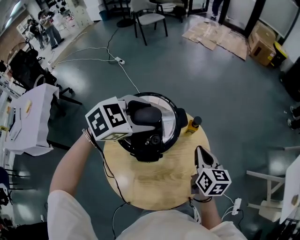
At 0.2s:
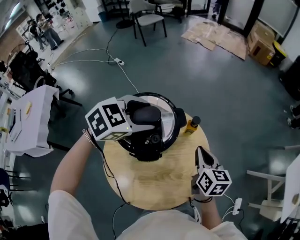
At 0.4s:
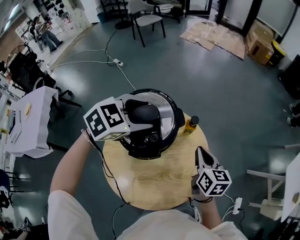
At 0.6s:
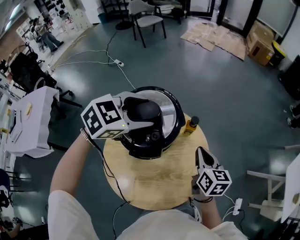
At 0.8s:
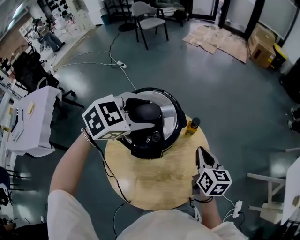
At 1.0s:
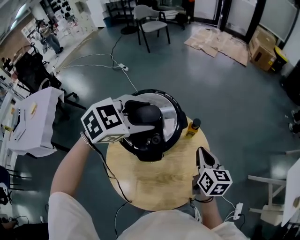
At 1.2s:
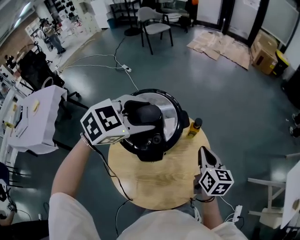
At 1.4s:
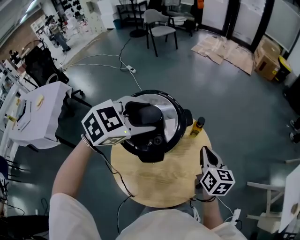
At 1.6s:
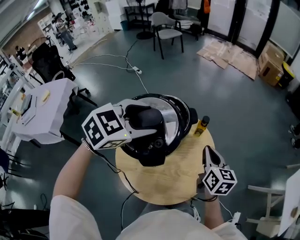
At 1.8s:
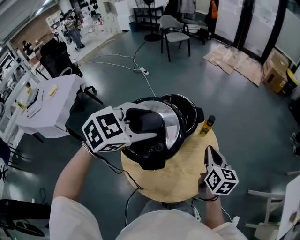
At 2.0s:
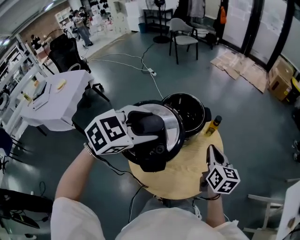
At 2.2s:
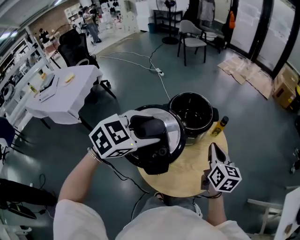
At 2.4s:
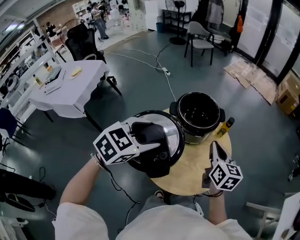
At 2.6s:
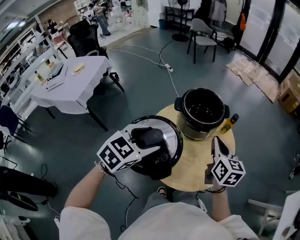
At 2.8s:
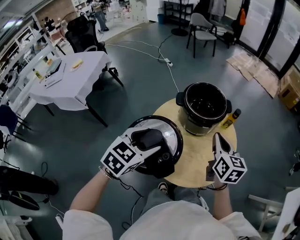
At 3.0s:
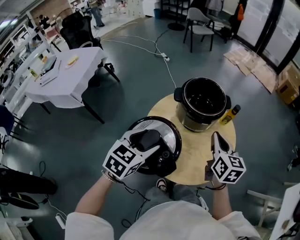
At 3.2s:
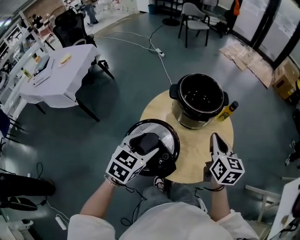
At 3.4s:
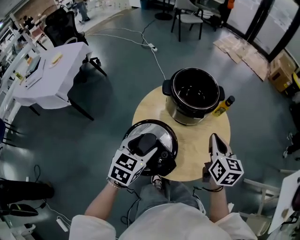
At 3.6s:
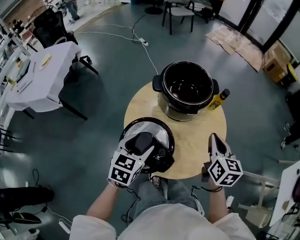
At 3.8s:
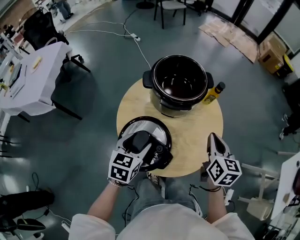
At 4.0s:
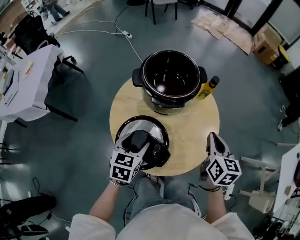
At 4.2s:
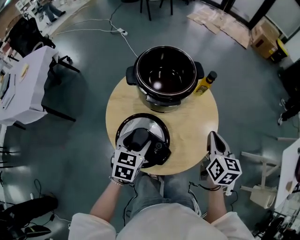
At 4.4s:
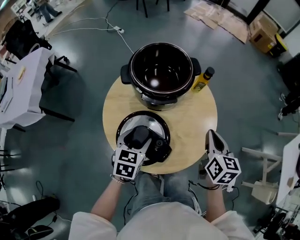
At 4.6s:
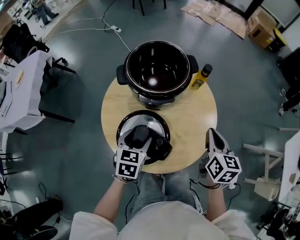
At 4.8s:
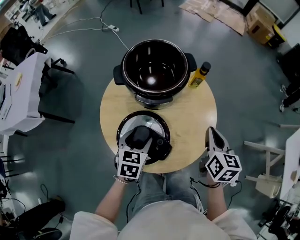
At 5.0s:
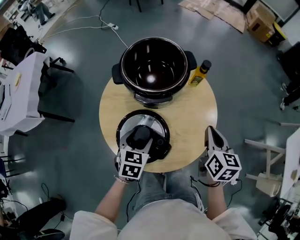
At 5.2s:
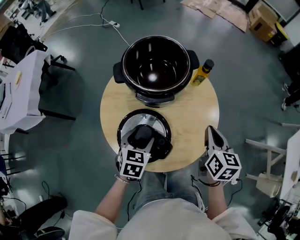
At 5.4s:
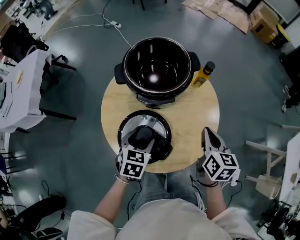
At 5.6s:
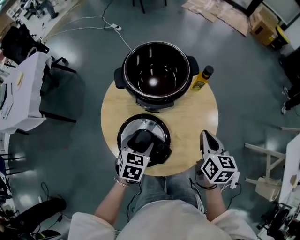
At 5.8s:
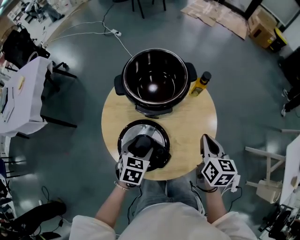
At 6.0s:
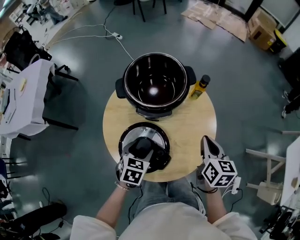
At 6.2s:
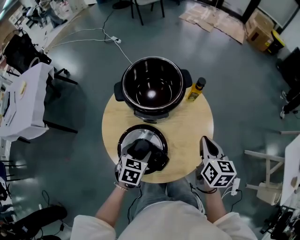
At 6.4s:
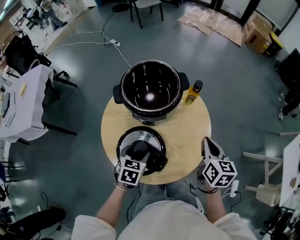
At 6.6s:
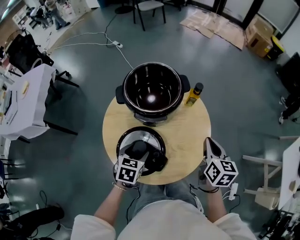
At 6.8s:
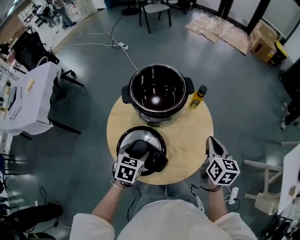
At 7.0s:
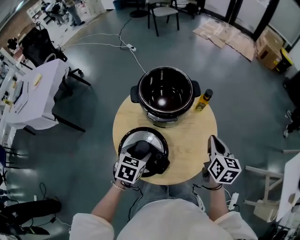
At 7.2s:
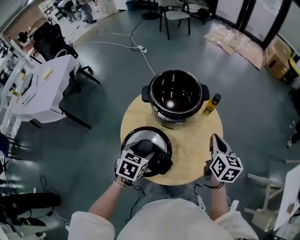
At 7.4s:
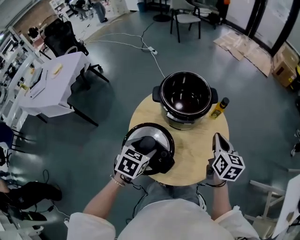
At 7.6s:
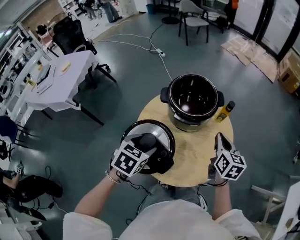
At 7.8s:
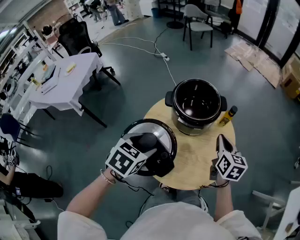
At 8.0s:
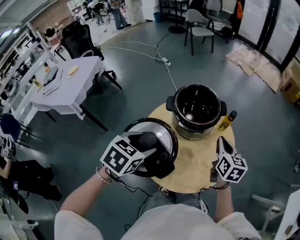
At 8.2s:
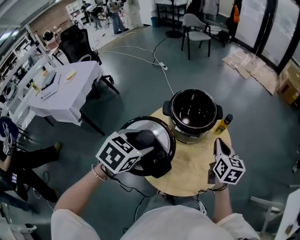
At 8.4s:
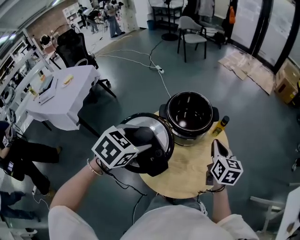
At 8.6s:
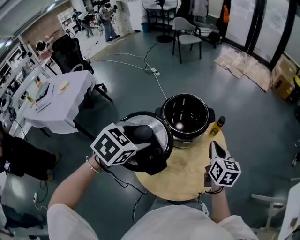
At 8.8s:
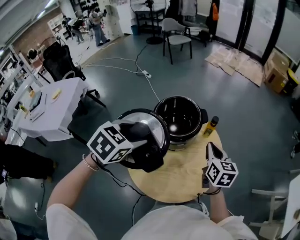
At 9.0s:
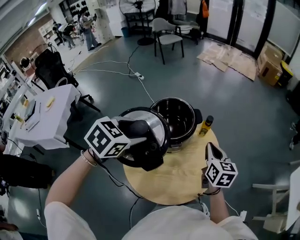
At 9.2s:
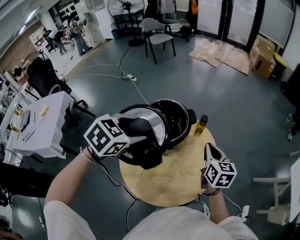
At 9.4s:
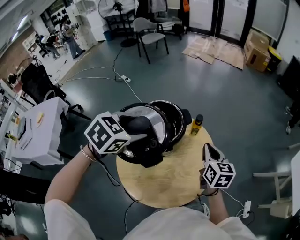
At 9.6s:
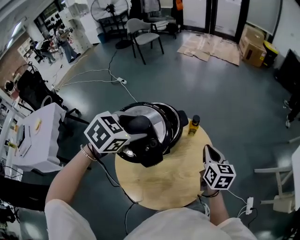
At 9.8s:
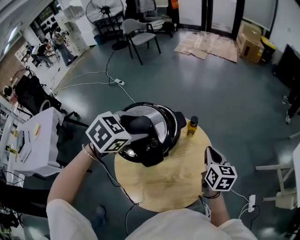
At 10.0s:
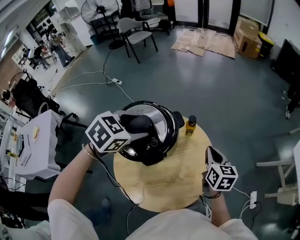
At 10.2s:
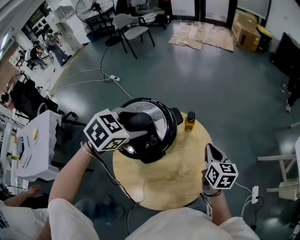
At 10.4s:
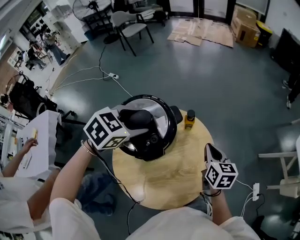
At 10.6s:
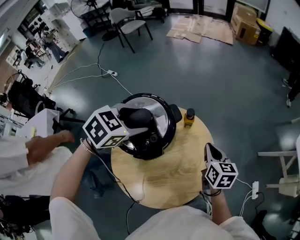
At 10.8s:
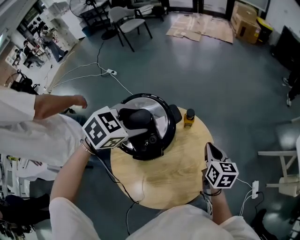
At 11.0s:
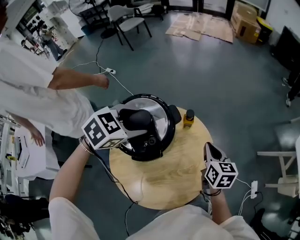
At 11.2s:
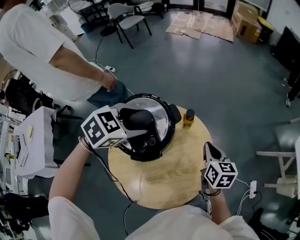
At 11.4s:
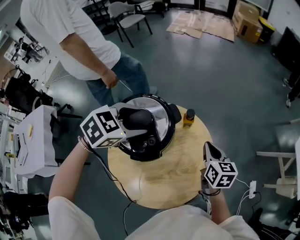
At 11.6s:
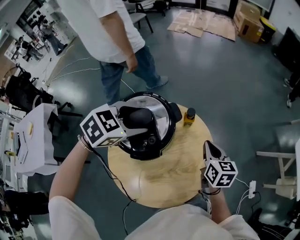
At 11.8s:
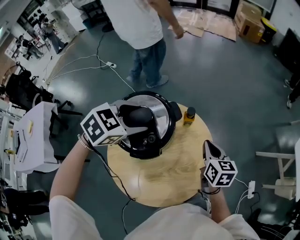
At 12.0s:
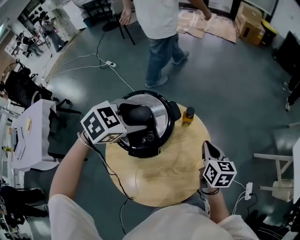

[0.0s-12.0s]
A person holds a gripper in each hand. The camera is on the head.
0.0s to 1.6s: The right gripper ends up roughly 5 cm from where it was; the left gripper is displaced backward and upward by roughly 15 cm.
1.6s to 3.0s: The left gripper is displaced backward, downward and to the left by approximately 25 cm, and rotates some 40 degrees. The right gripper travels to the left and backward by some 15 cm.
3.0s to 4.4s: The left gripper shifts about 20 cm downward, to the right and forward. Meanwhile the right gripper travels to the right and downward by about 15 cm, and turns by about 20 degrees.
4.4s to 6.0s: There are only small adjustments of the grippers.
6.0s to 7.6s: The right gripper is displaced upward and to the left by some 10 cm. Meanwhile the left gripper is displaced upward and to the left by some 15 cm.
7.6s to 9.0s: The left gripper travels forward and upward by some 20 cm, and rotates some 30 degrees.
9.0s to 10.4s: The right gripper is displaced downward and to the right by approximately 10 cm, while the left gripper heads forward, covering about 15 cm, and turns by roughly 20 degrees.
10.4s to 12.0s: There are only small adjustments of the grippers.

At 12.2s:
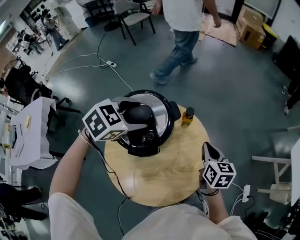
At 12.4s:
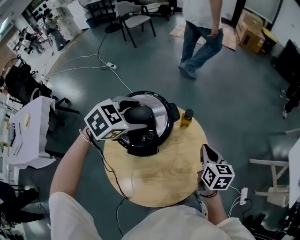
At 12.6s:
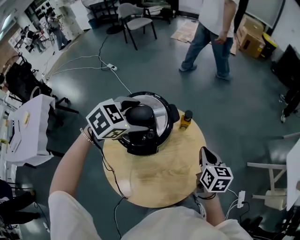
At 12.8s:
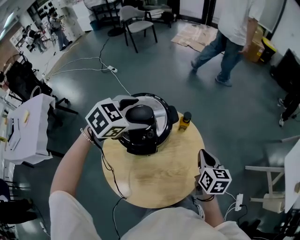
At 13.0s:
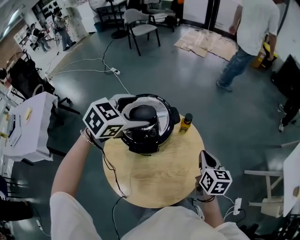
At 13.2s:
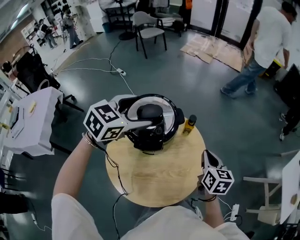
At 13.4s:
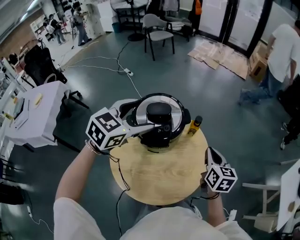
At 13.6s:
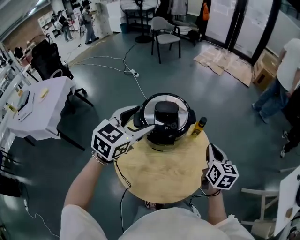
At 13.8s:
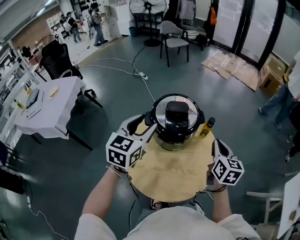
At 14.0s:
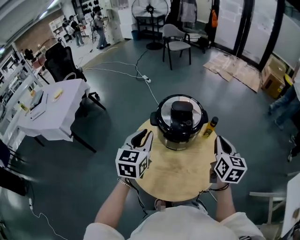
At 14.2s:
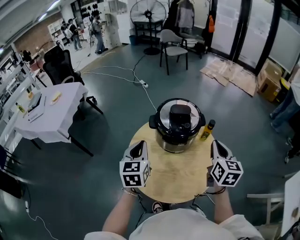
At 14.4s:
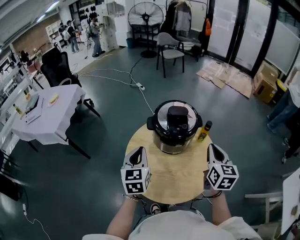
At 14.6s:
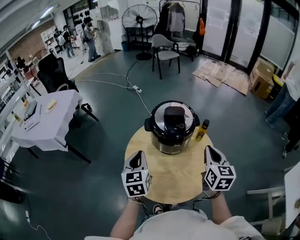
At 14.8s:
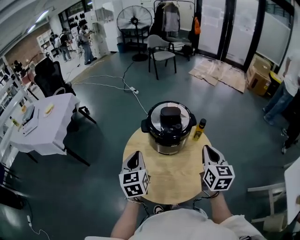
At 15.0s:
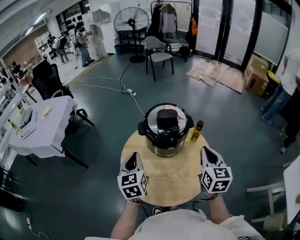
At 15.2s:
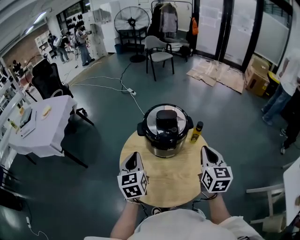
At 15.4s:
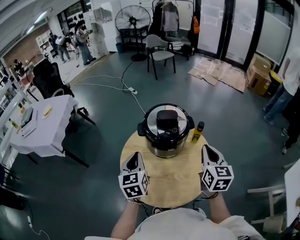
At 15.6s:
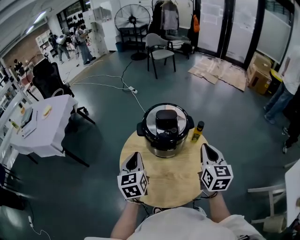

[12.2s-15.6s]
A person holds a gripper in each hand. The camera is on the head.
12.2s to 13.8s: The right gripper heads upward, covering approximately 10 cm. The left gripper ends up approximately 20 cm from where it was, and tips its fingers upward by approximately 40 degrees.
13.8s to 15.6s: The left gripper heads downward and backward, covering approximately 10 cm, changes its angle by about 30 degrees, and closes up.

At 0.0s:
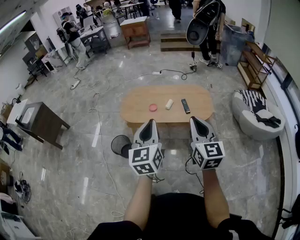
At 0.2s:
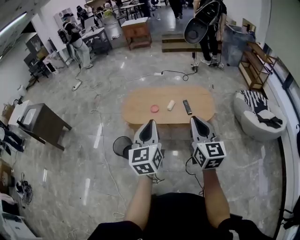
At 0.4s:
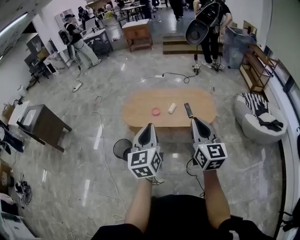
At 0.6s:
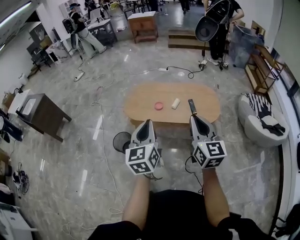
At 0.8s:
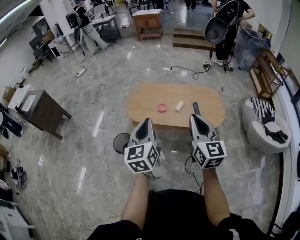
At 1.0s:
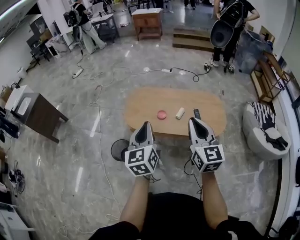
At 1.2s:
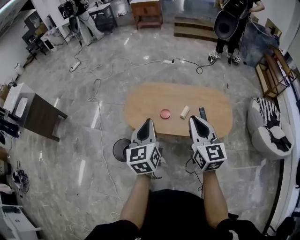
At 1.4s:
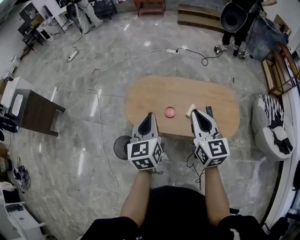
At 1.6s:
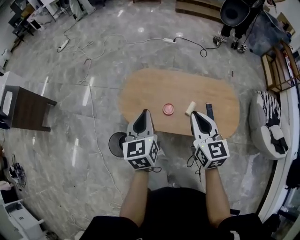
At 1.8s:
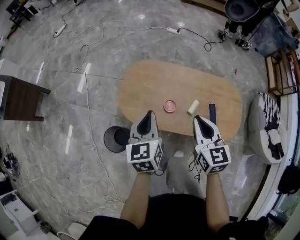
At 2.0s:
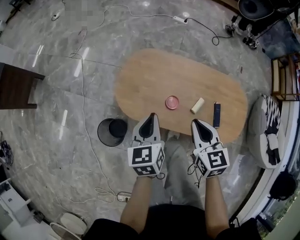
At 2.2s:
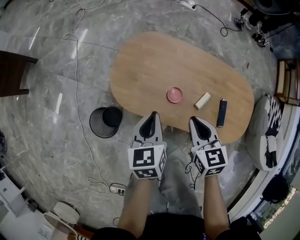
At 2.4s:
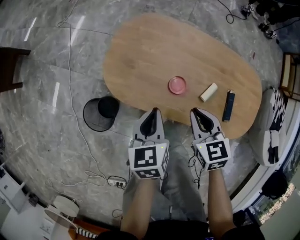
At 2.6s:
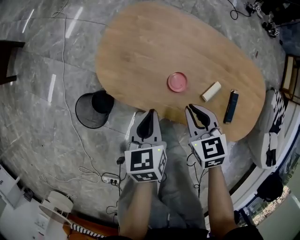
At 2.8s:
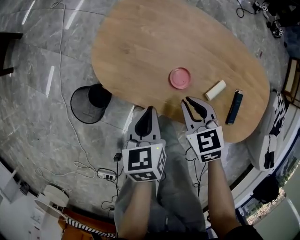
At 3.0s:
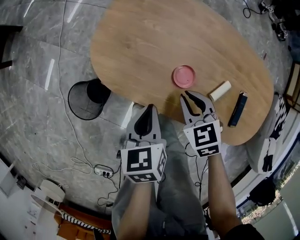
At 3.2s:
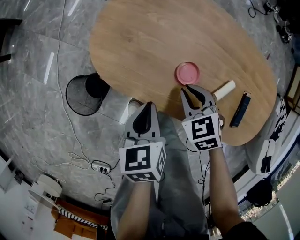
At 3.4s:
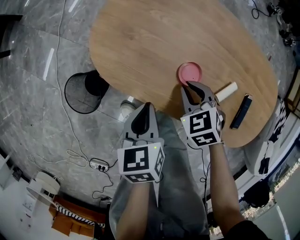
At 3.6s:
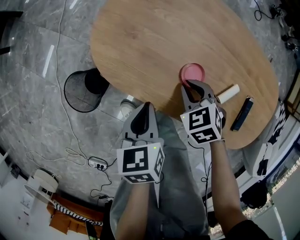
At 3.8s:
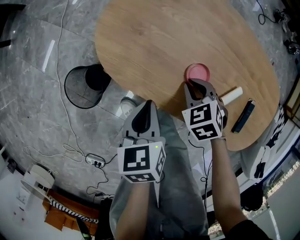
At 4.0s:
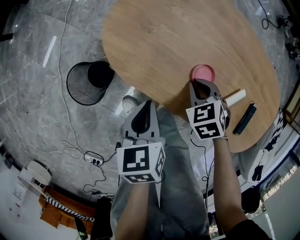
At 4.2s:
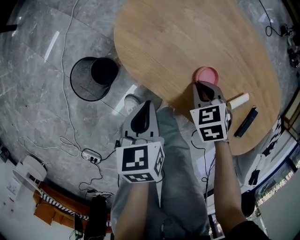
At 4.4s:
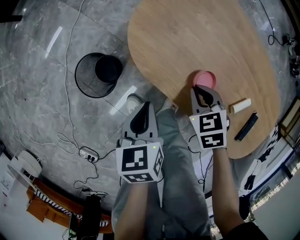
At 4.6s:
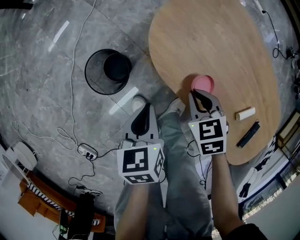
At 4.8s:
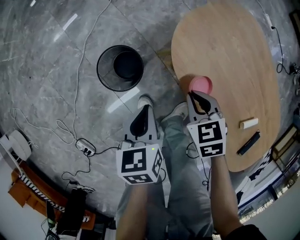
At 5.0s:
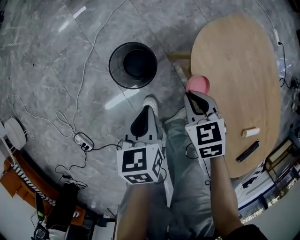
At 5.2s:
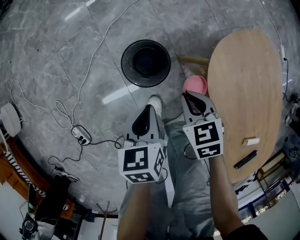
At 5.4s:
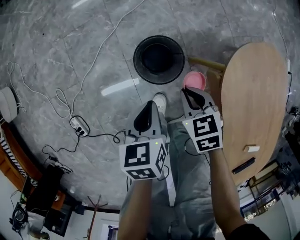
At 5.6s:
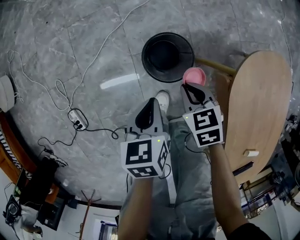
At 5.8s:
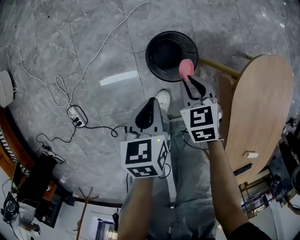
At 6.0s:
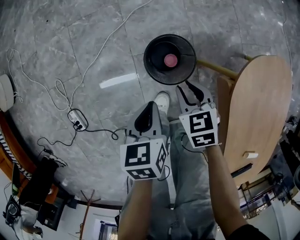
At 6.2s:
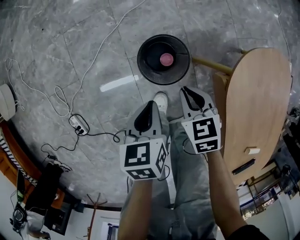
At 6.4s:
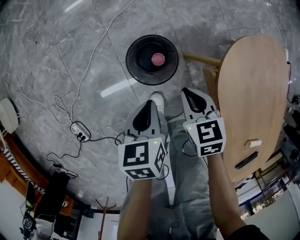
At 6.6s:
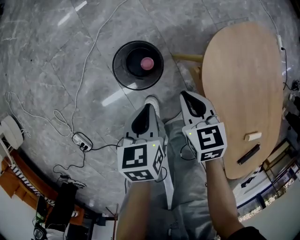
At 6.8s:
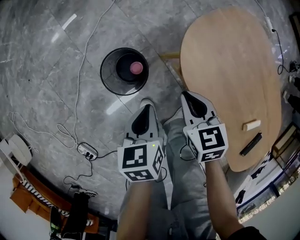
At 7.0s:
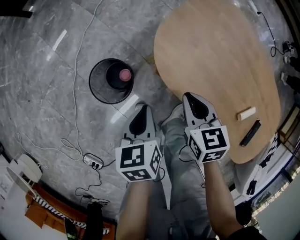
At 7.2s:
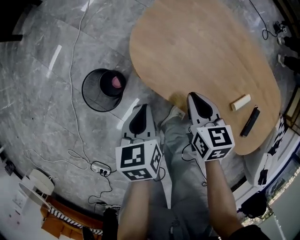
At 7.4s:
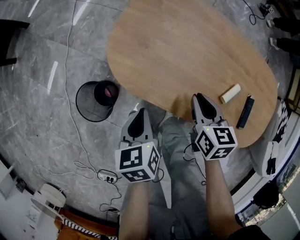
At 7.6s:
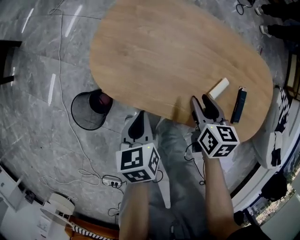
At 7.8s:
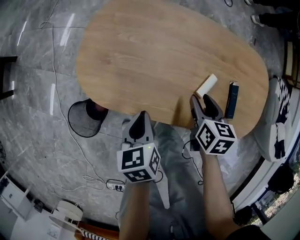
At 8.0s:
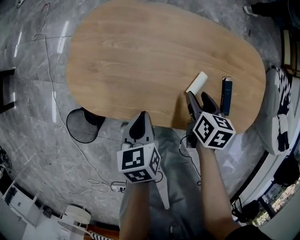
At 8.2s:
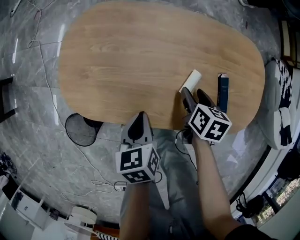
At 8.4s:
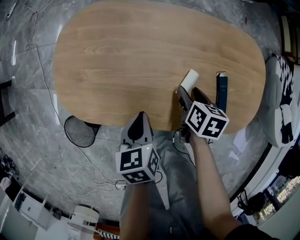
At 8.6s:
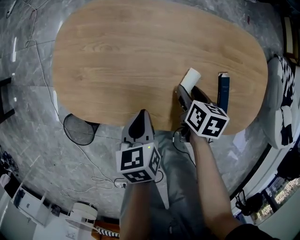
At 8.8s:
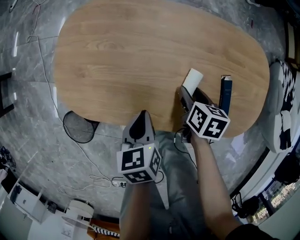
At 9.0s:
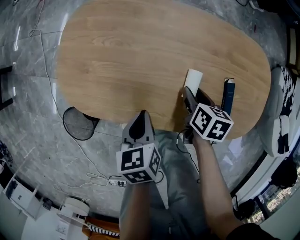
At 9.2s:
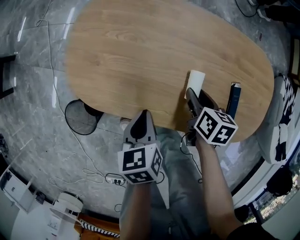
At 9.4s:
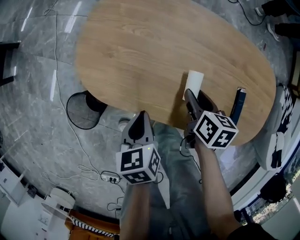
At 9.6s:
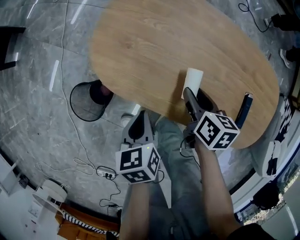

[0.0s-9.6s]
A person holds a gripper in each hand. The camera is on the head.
0.0s to 1.6s: Both grippers are carried forward, approximately 50 cm. The left gripper changes its angle by some 20 degrees.
1.6s to 3.2s: The two grippers go some 40 cm downward. The left gripper swivels some 30 degrees. The right gripper tips its fingers downward by roughly 40 degrees.
3.2s to 4.8s: The right gripper shifts by some 20 cm. Meanwhile the left gripper changes place by some 20 cm, and rotates about 20 degrees.
4.8s to 6.4s: The left gripper changes place by approximately 15 cm, while the right gripper ends up approximately 15 cm from where it was, and opens, then closes again.
6.4s to 8.0s: Both grippers are carried about 50 cm. The left gripper swivels about 50 degrees, while the right gripper rolls clockwise, seen from behind, by approximately 70 degrees, and opens its fingers.
8.0s to 9.6s: The left gripper heads to the left, covering some 10 cm; the right gripper heads to the left, covering roughly 15 cm.
